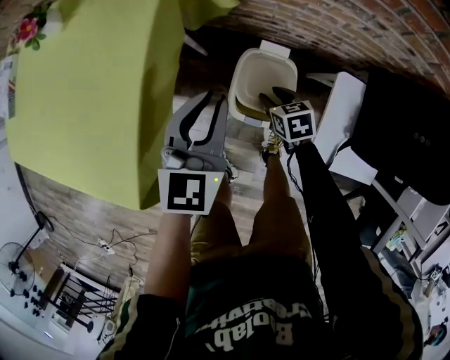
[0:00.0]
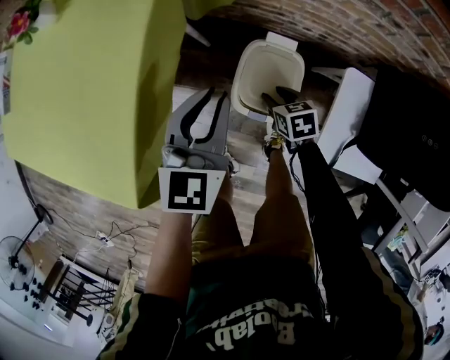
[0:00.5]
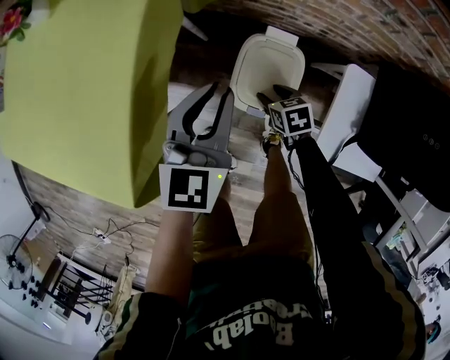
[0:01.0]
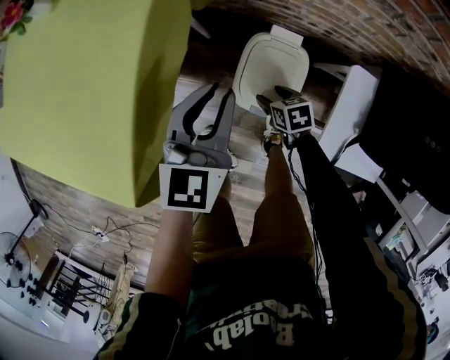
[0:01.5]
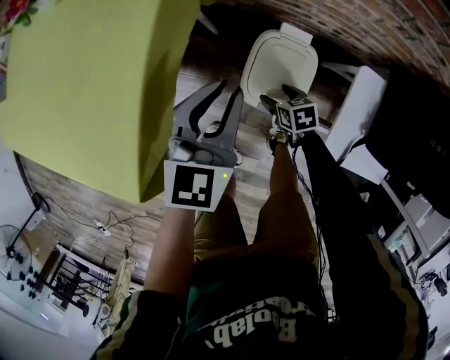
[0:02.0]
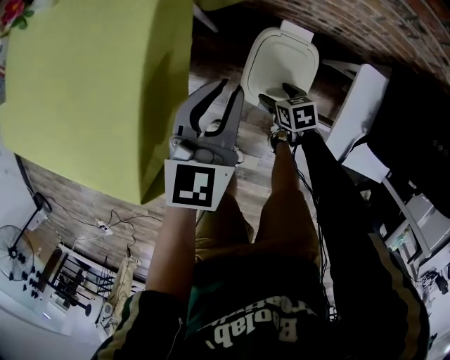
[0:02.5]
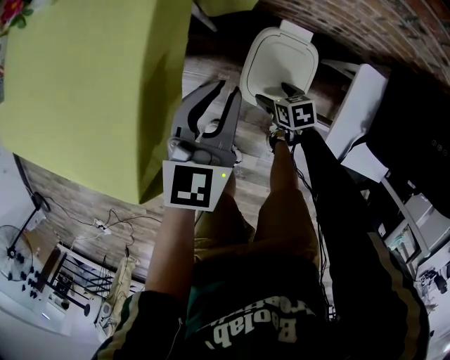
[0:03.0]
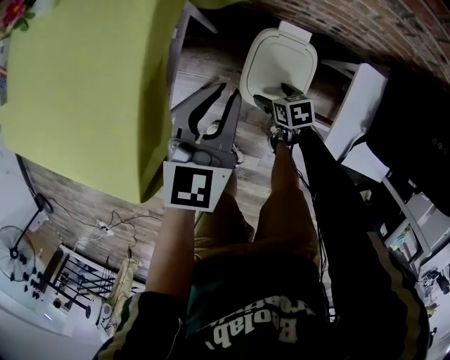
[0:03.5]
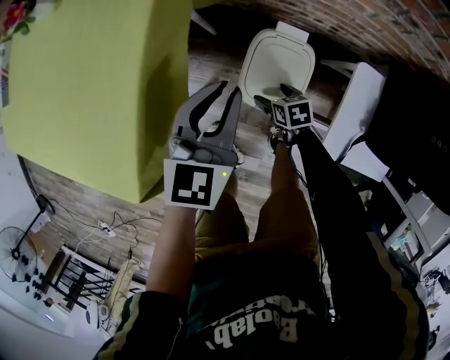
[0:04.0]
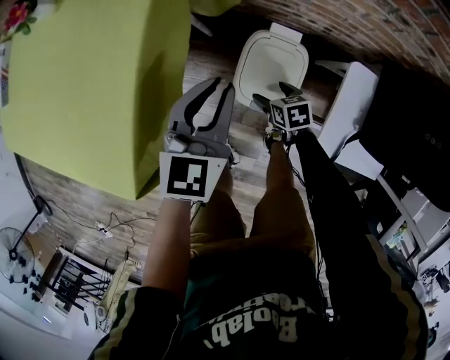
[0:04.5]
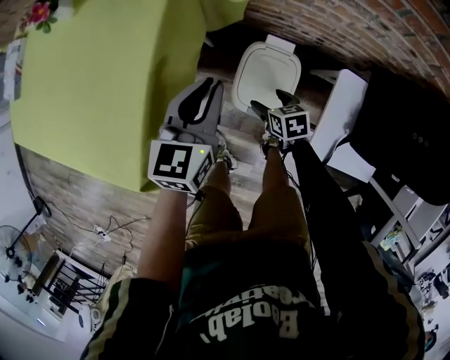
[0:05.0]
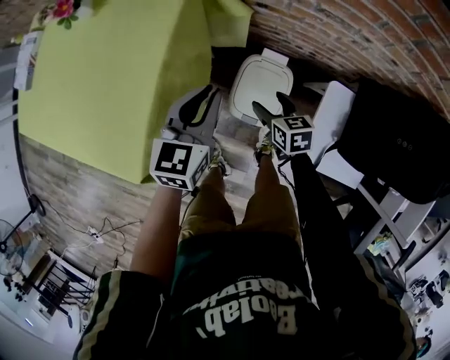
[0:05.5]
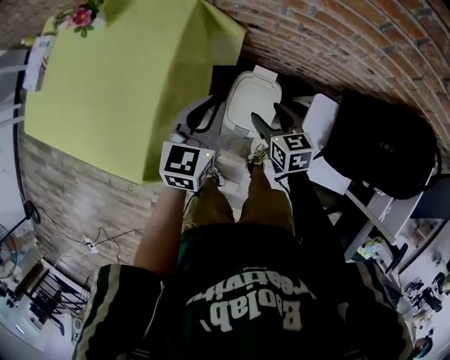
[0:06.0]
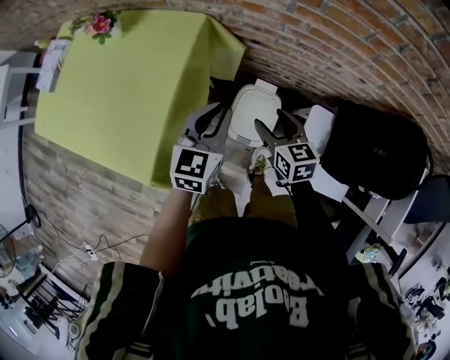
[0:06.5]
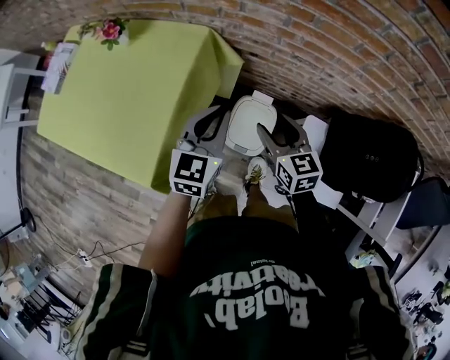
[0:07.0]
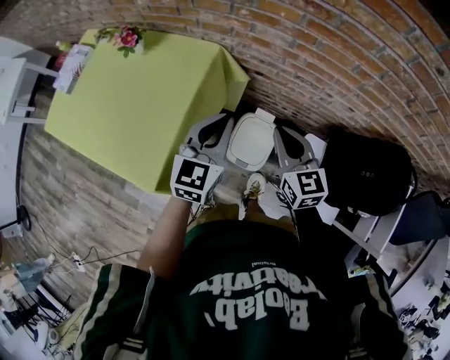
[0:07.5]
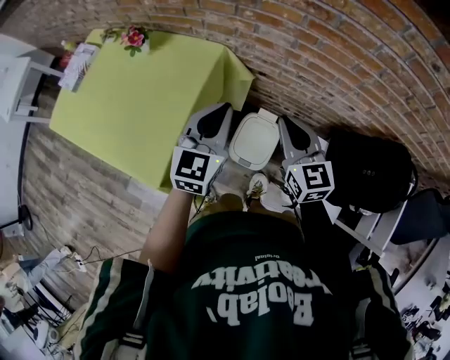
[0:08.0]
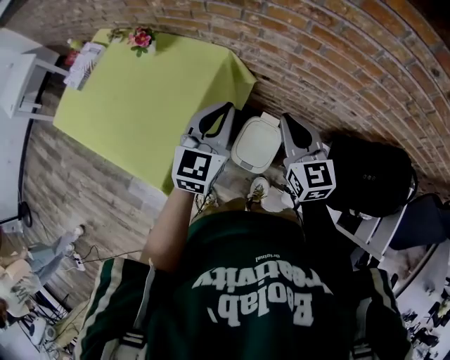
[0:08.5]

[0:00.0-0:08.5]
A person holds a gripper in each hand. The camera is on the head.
0:00.0 to 0:02.0: The right gripper is displaced downward by about 10 cm, and opens. The left gripper changes place by approximately 5 cm.
0:02.0 to 0:04.0: The grippers make only small movements.
0:04.0 to 0:06.5: The right gripper shifts some 35 cm upward, and changes its angle by about 30 degrees, while the left gripper heads upward, covering approximately 15 cm.
0:06.5 to 0:08.5: Both grippers move upward, about 15 cm. The right gripper changes its angle by roughly 30 degrees, and closes up.

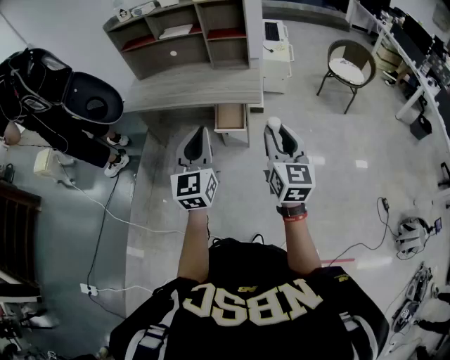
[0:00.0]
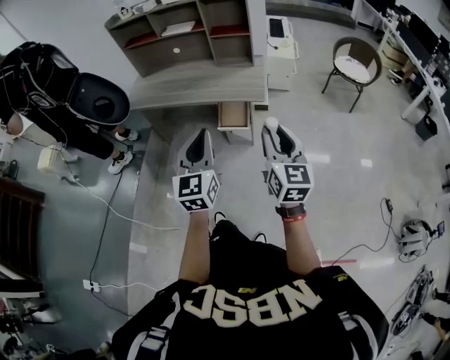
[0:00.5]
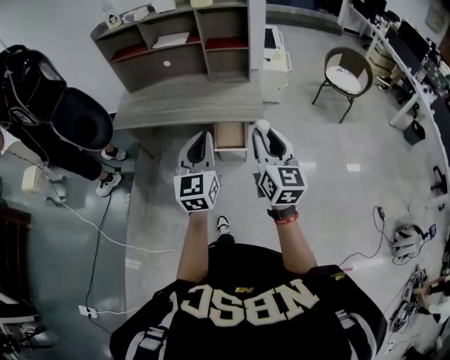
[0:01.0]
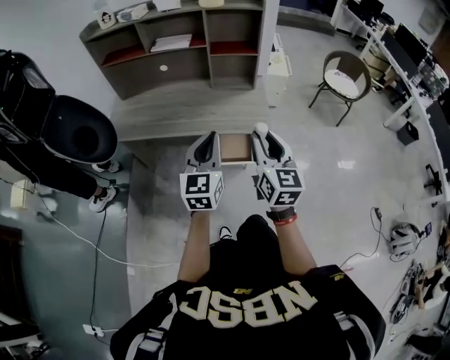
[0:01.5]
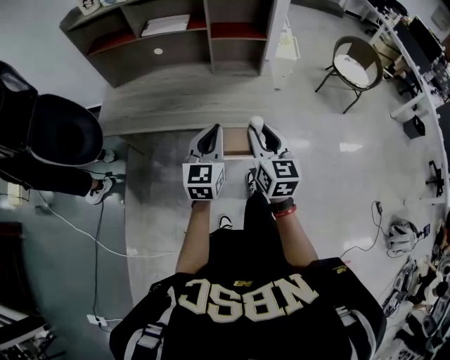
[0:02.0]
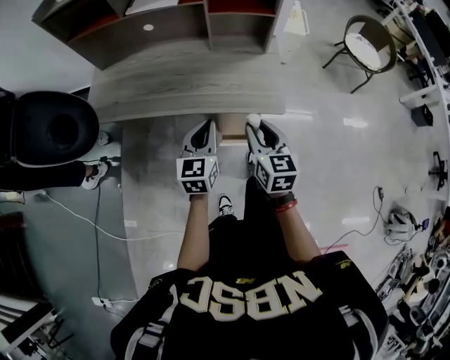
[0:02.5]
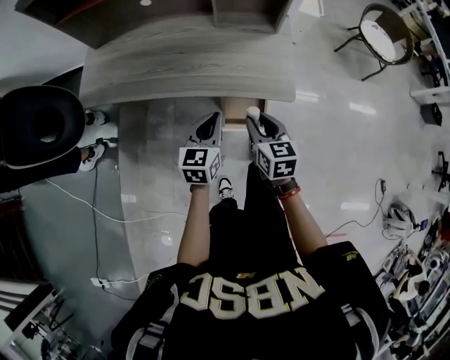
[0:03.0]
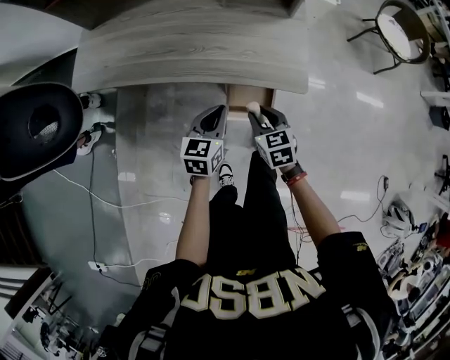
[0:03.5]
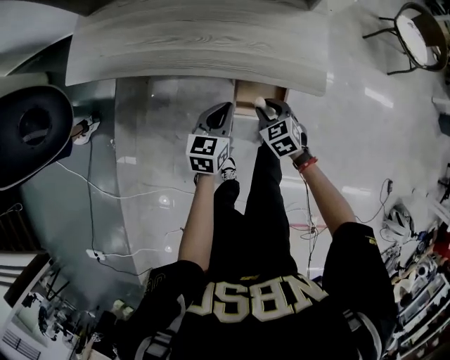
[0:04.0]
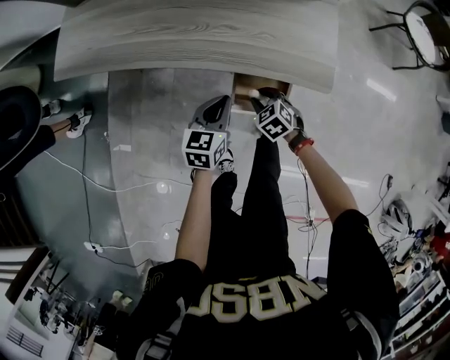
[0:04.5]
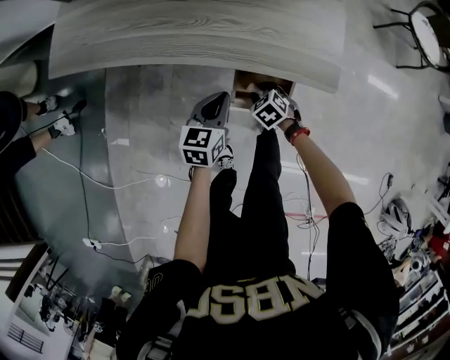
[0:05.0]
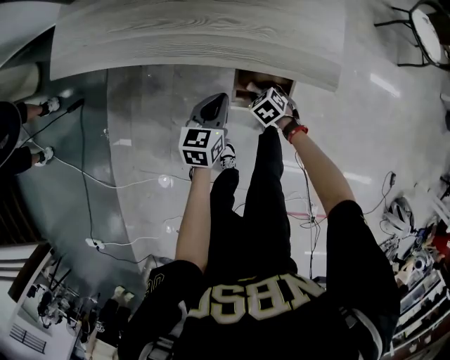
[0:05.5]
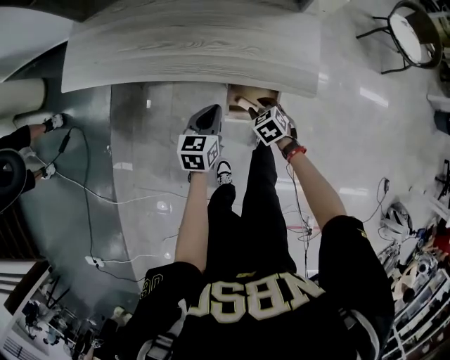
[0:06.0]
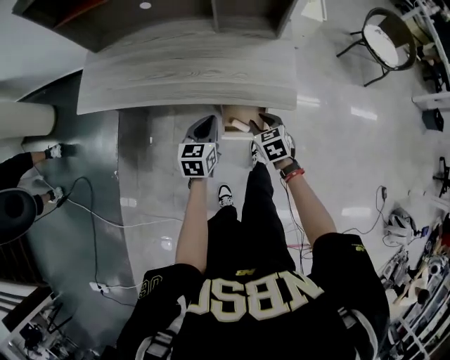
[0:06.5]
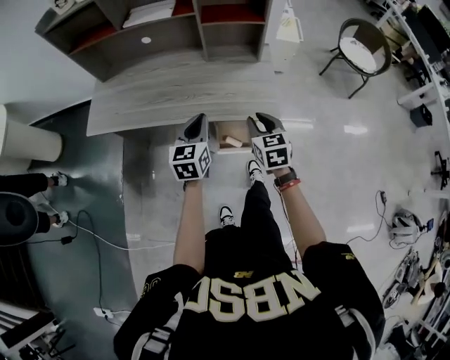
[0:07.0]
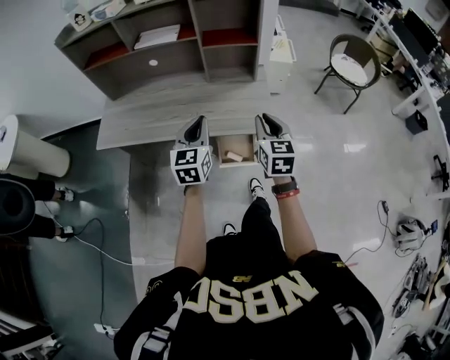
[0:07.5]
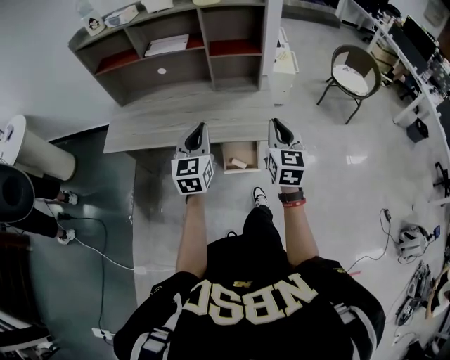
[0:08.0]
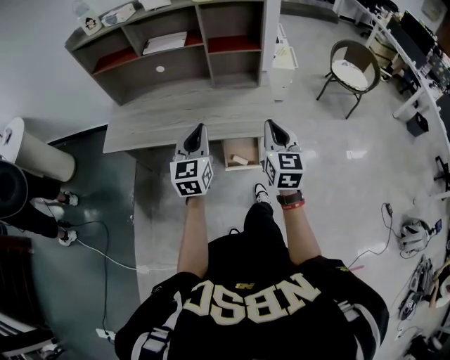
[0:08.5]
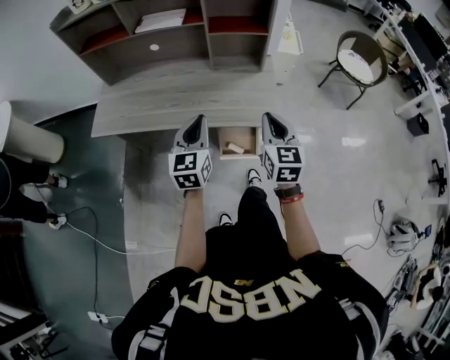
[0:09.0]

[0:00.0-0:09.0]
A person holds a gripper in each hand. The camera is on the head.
0:00.0 to 0:02.0: The left gripper is displaced forward by about 35 cm, while the right gripper travels forward and to the left by about 35 cm.
0:02.0 to 0:04.5: The grippers both shift downward by about 40 cm. The right gripper points its fingers about 50 degrees further downward. The left gripper swivels roughly 30 degrees.
0:04.5 to 0:07.0: The grippers both shift upward by roughly 25 cm. The right gripper swivels some 40 degrees.
0:07.0 to 0:09.0: The grippers both shift upward by roughly 10 cm. The right gripper closes.

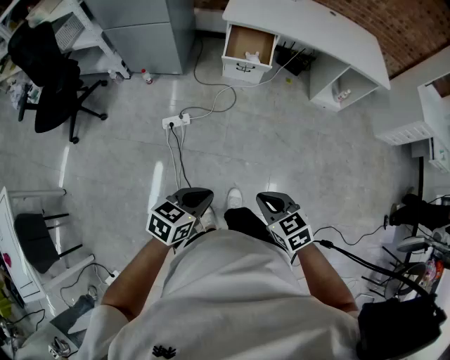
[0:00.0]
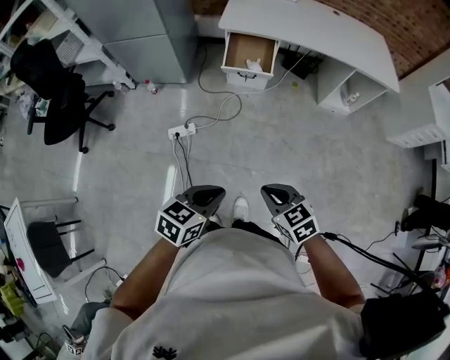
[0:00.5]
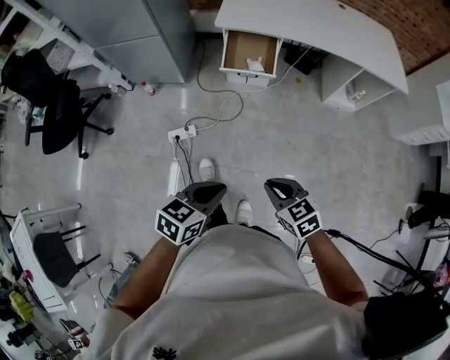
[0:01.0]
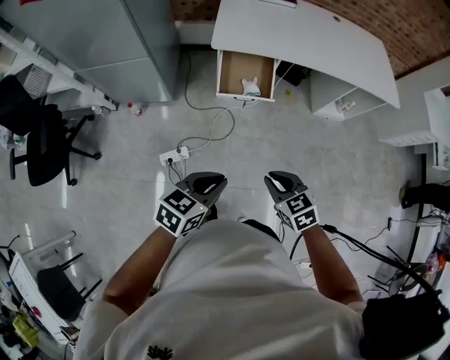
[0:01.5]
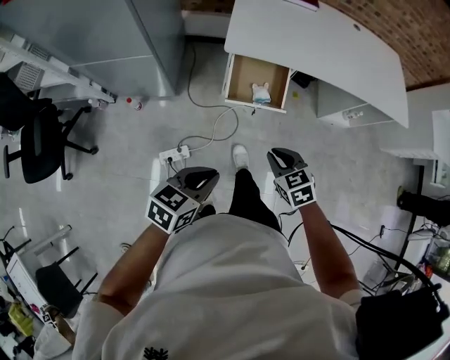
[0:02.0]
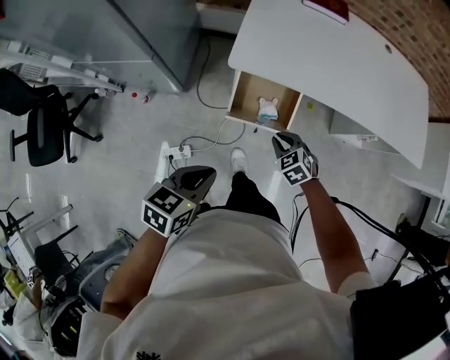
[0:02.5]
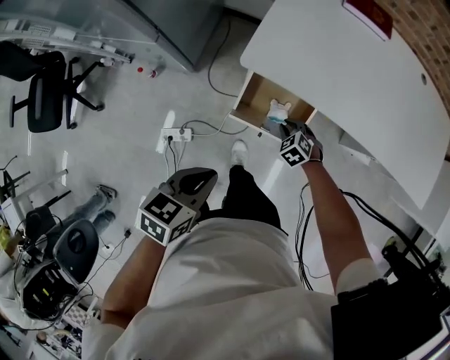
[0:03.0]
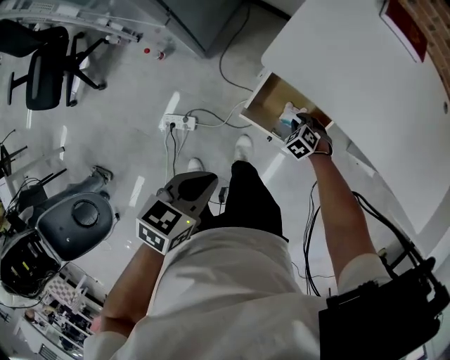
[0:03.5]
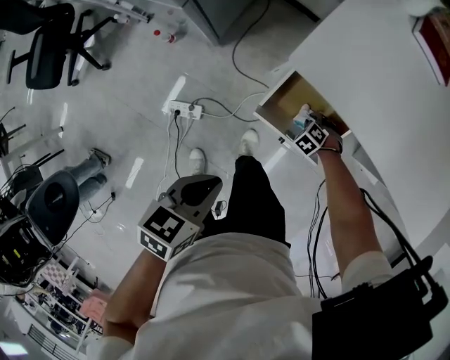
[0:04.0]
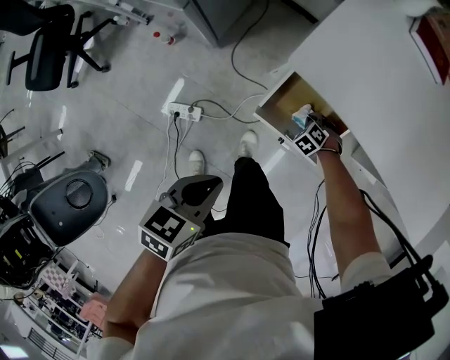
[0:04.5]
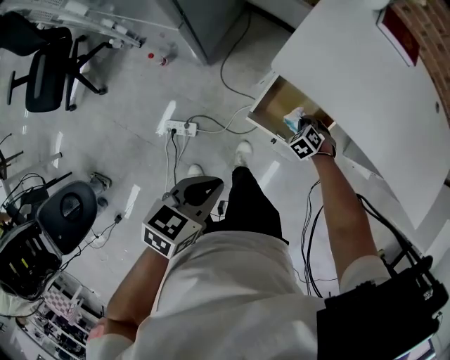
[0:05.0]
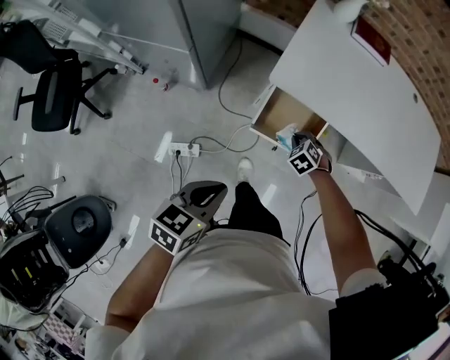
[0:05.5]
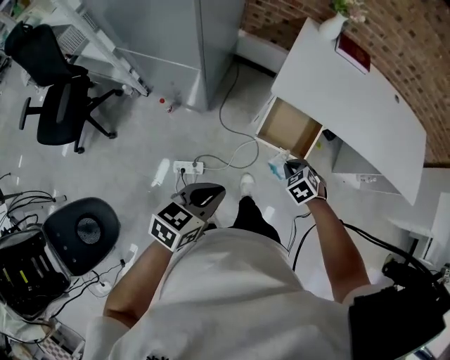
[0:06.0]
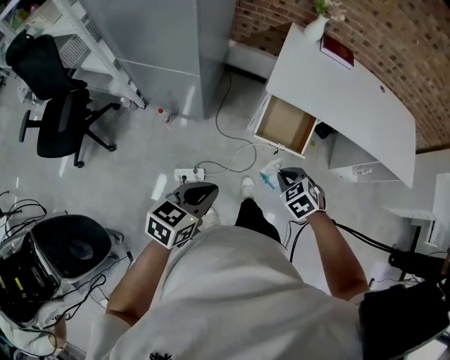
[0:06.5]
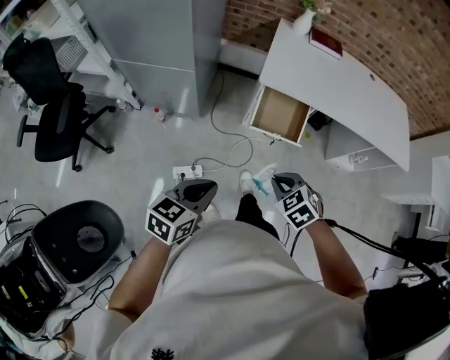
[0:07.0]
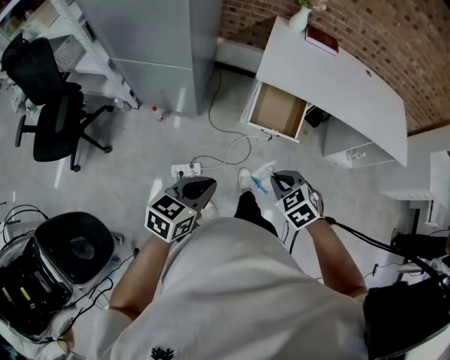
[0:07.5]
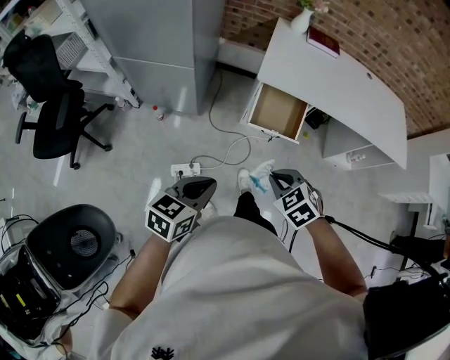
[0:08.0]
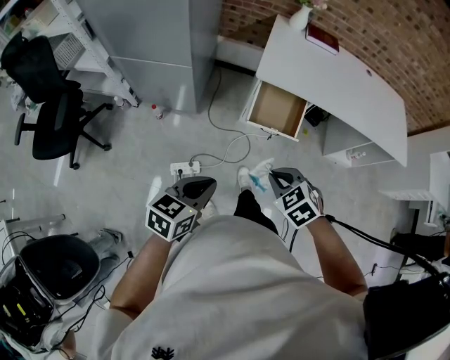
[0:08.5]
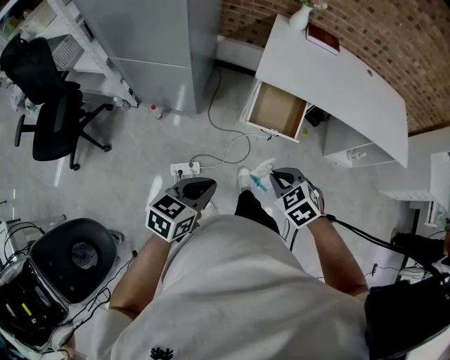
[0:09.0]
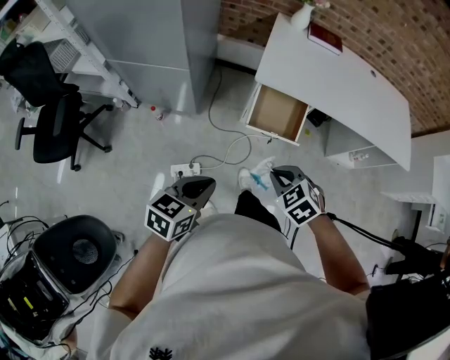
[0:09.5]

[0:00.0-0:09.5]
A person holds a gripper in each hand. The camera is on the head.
0:00.0 to 0:02.0: The pair of grippers is taken forward, roughly 60 cm.
0:02.0 to 0:04.0: The right gripper is displaced downward by approximately 40 cm, and twists some 50 degrees counterclockwise, seen from behind. Meanwhile the left gripper changes place by roughly 30 cm, and changes its angle by approximately 30 degrees.
0:04.0 to 0:05.5: The right gripper is displaced upward by approximately 25 cm, and changes its angle by some 20 degrees; the left gripper goes some 15 cm upward.
0:05.5 to 0:07.5: The right gripper is displaced backward and upward by roughly 50 cm. The left gripper moves backward, some 25 cm.
0:07.5 to 0:09.5: Both grippers travel together forward, approximately 5 cm.
